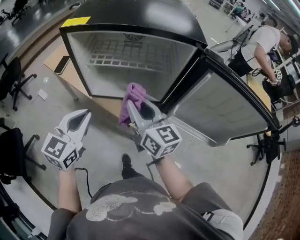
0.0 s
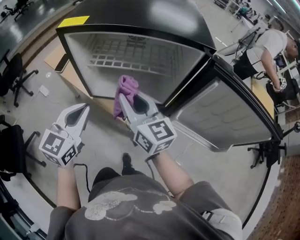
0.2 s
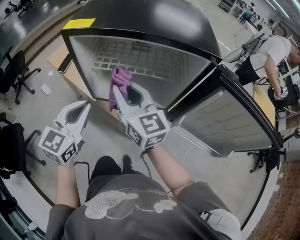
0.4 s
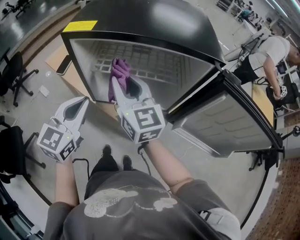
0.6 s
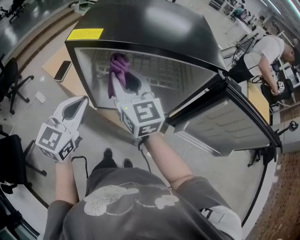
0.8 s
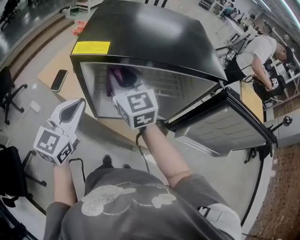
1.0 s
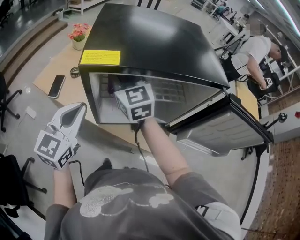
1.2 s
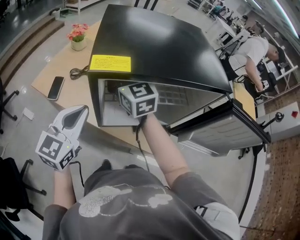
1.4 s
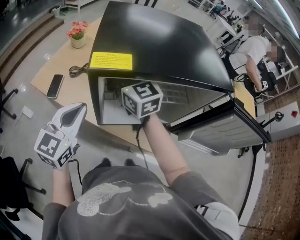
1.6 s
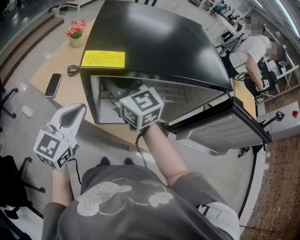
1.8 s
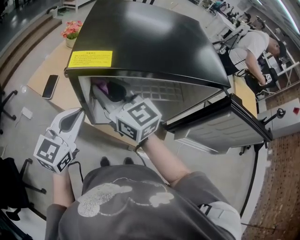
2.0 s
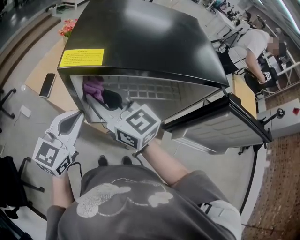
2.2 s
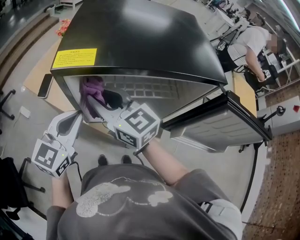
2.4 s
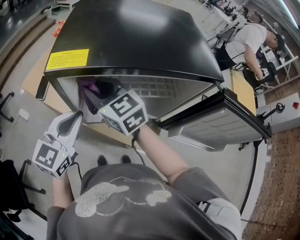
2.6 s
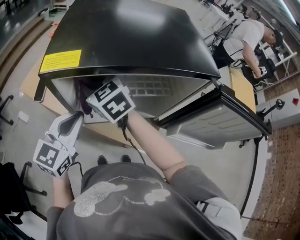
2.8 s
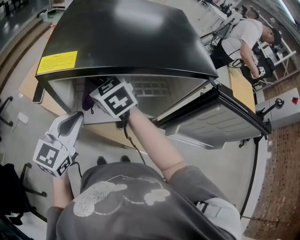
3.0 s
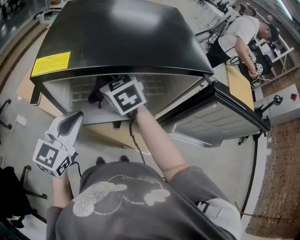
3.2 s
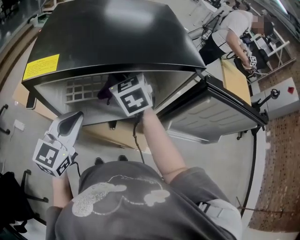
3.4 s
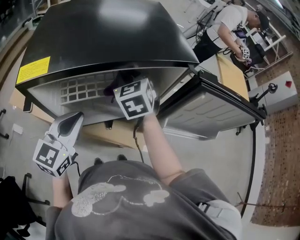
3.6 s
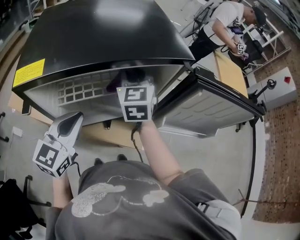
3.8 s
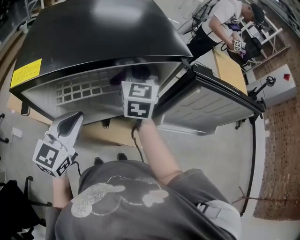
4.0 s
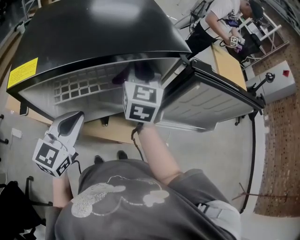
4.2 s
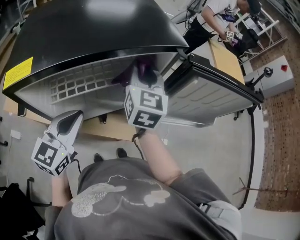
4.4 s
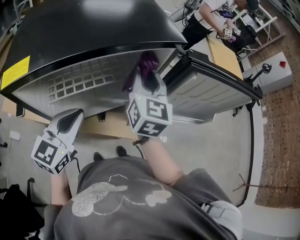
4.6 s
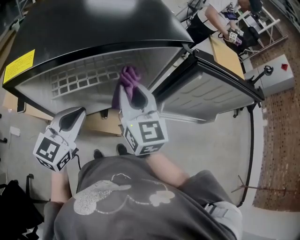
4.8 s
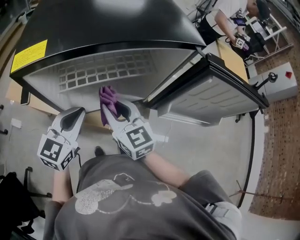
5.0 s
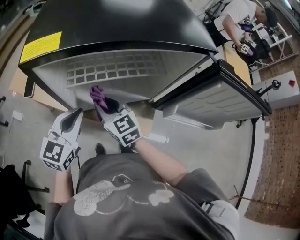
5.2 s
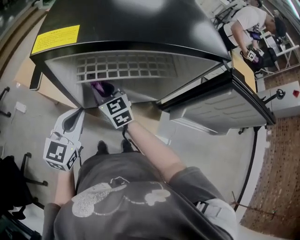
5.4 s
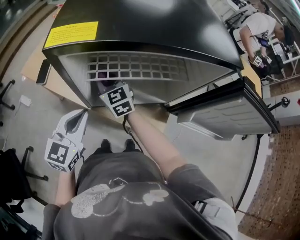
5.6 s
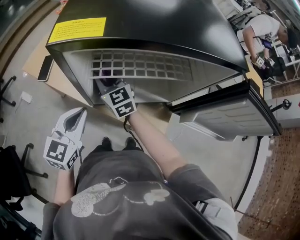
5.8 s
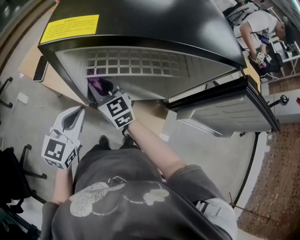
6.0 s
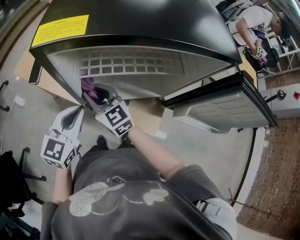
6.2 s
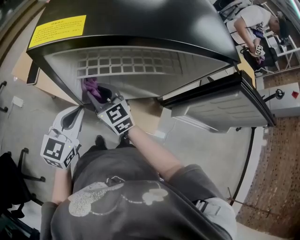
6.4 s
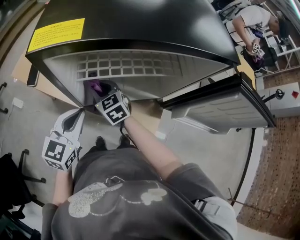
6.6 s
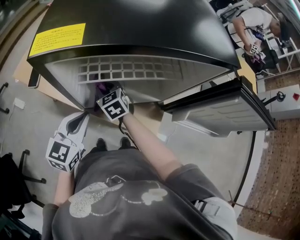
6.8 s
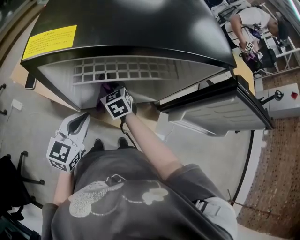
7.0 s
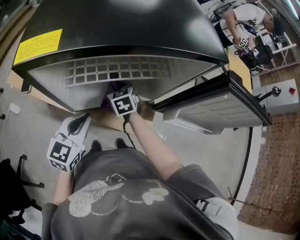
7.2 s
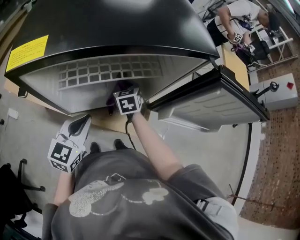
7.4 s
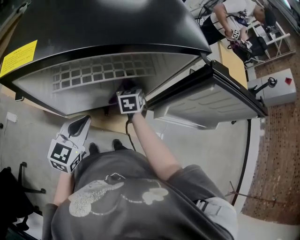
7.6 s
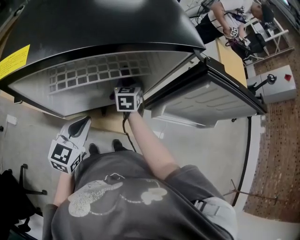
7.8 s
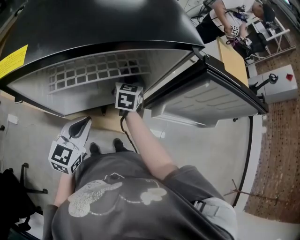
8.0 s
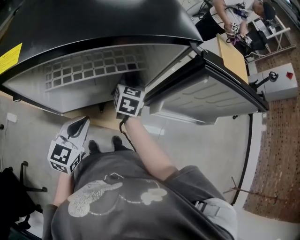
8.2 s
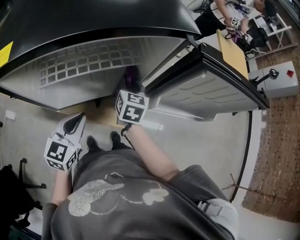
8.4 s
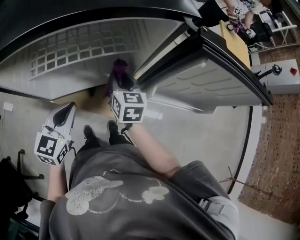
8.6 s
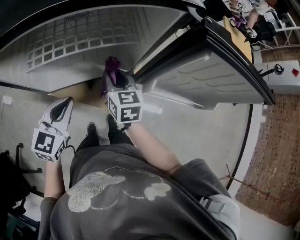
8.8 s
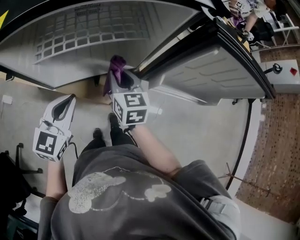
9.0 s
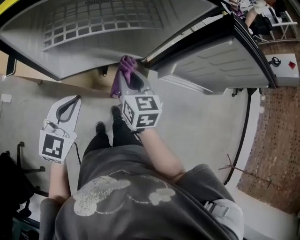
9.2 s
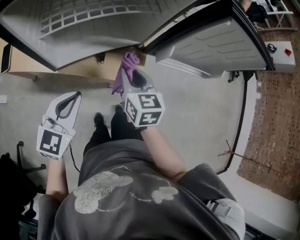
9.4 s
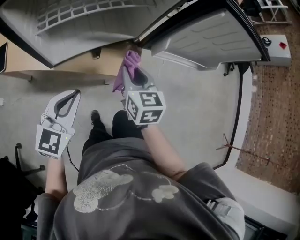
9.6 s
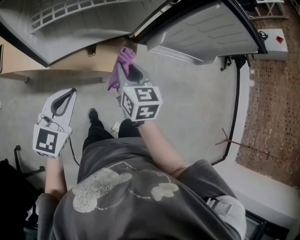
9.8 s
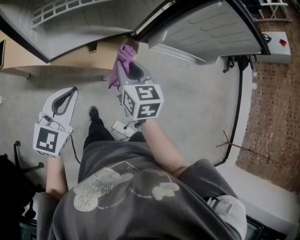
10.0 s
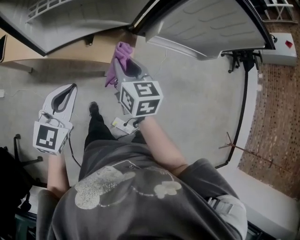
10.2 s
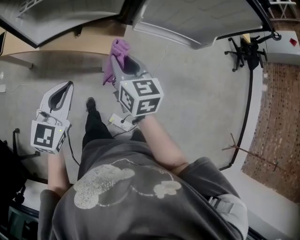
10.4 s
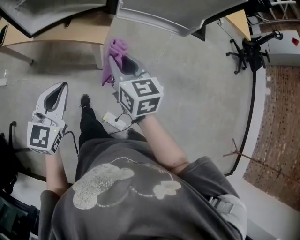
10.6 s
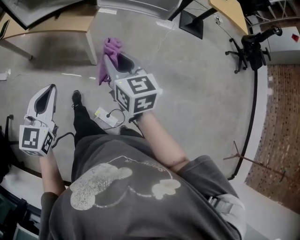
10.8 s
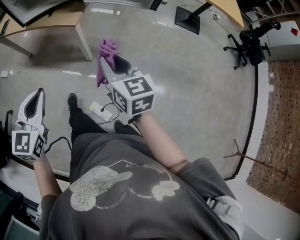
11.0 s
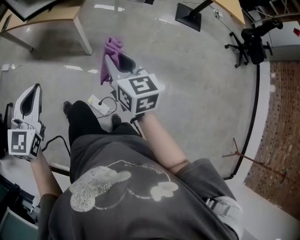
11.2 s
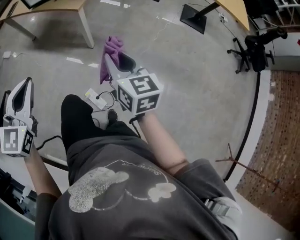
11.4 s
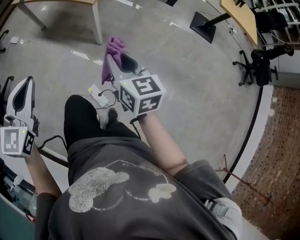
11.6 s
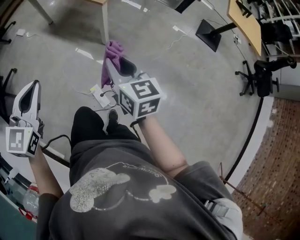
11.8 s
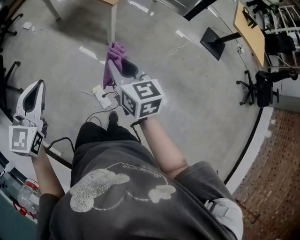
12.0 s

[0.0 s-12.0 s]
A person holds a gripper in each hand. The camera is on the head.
0.0 to 1.6 s: The grippers both shift forward and to the left by approximately 25 cm. The right gripper swivels about 20 degrees.
1.6 to 3.0 s: The left gripper goes approximately 10 cm to the right. Meanwhile the right gripper travels downward by approximately 5 cm, goes backward and returns, about 10 cm each way, and rotates some 20 degrees.
3.0 to 4.4 s: The right gripper shifts by some 30 cm, and rotates about 60 degrees, while the left gripper shifts by about 10 cm.
4.4 to 6.0 s: The left gripper shifts by about 15 cm, while the right gripper moves roughly 35 cm, and turns by approximately 50 degrees.
6.0 to 7.6 s: The right gripper ends up some 30 cm from where it was, and points its fingers some 30 degrees further downward. Meanwhile the left gripper changes place by approximately 10 cm.
7.6 to 9.0 s: The right gripper is displaced backward and upward by some 15 cm, and rotates approximately 30 degrees.
9.0 to 10.4 s: The grippers both shift backward and to the right by roughly 20 cm.
10.4 to 12.0 s: The left gripper moves some 35 cm, and swivels some 30 degrees, while the right gripper ends up approximately 30 cm from where it was, and rotates roughly 30 degrees.

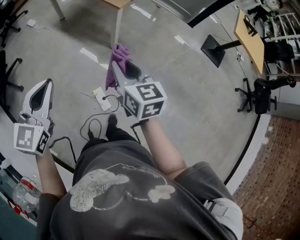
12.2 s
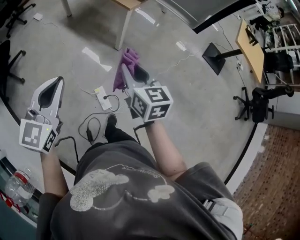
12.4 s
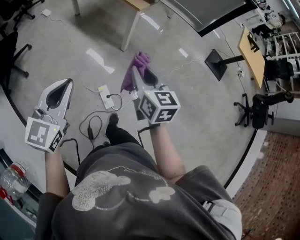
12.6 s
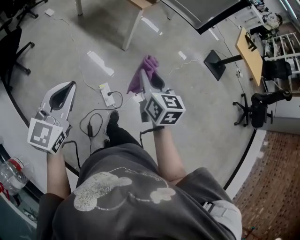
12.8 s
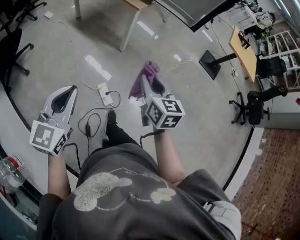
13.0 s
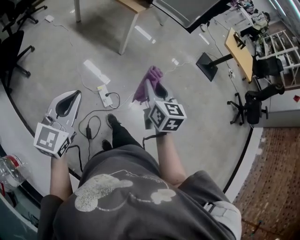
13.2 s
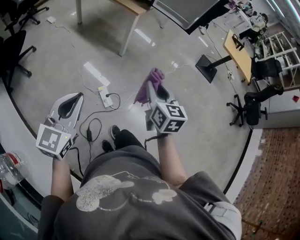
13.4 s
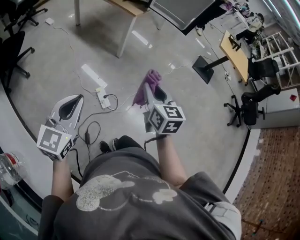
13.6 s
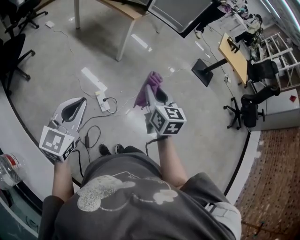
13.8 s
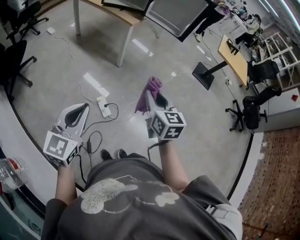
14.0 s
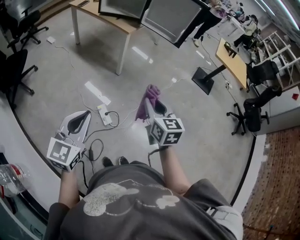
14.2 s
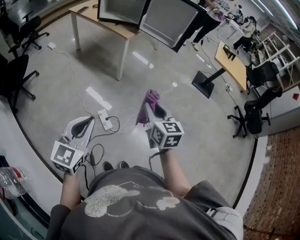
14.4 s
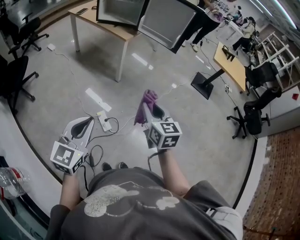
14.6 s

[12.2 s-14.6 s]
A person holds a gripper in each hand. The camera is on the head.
12.2 to 13.4 s: Both grippers travel together backward, approximately 25 cm.
13.4 to 14.6 s: The left gripper heads to the right, covering roughly 10 cm.

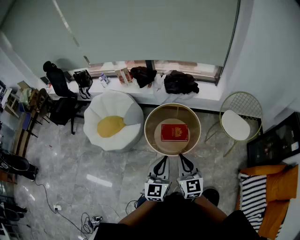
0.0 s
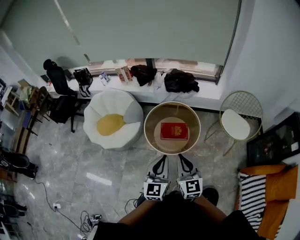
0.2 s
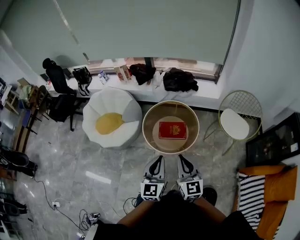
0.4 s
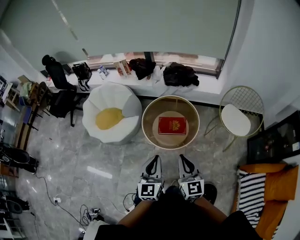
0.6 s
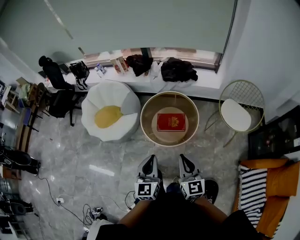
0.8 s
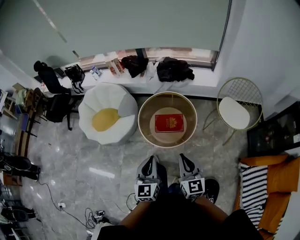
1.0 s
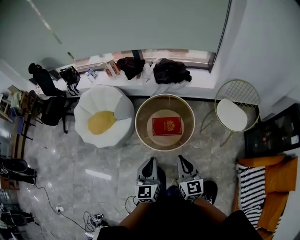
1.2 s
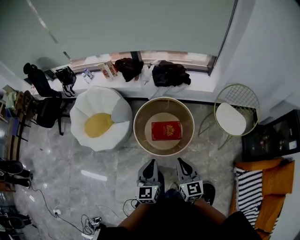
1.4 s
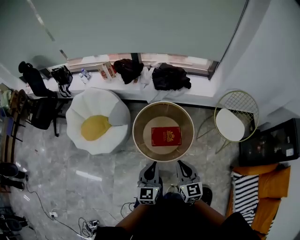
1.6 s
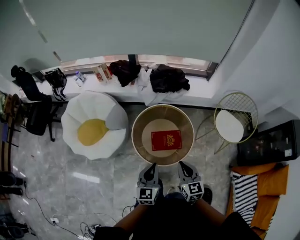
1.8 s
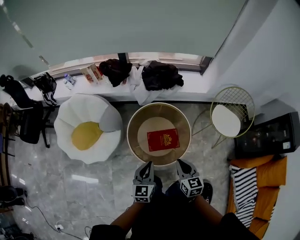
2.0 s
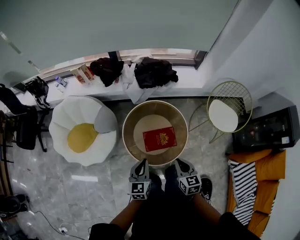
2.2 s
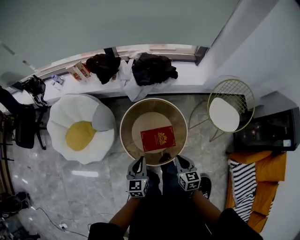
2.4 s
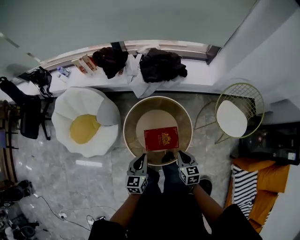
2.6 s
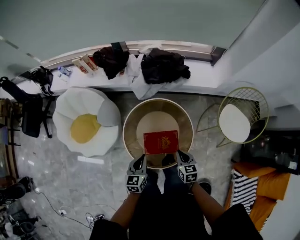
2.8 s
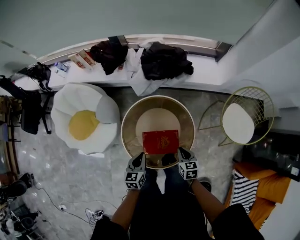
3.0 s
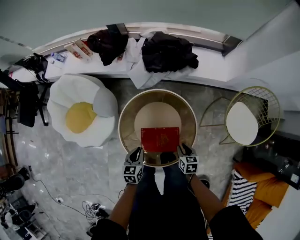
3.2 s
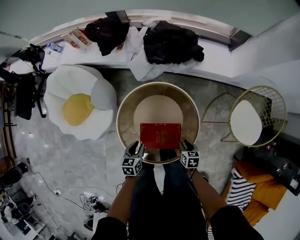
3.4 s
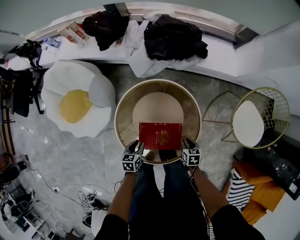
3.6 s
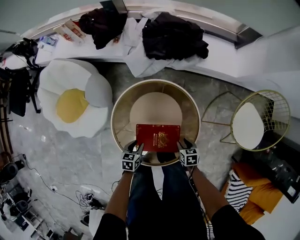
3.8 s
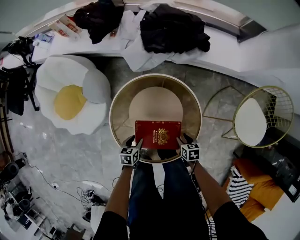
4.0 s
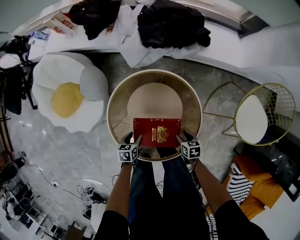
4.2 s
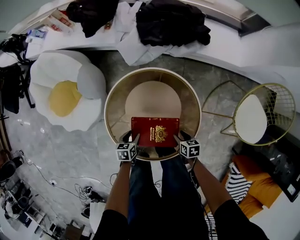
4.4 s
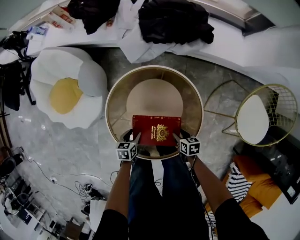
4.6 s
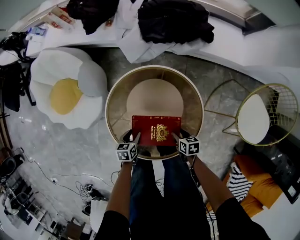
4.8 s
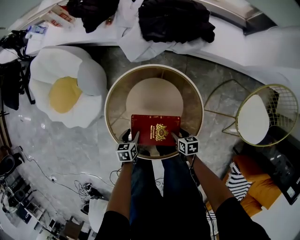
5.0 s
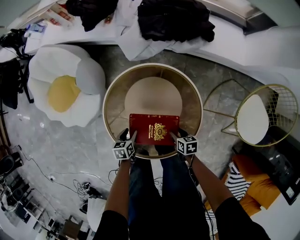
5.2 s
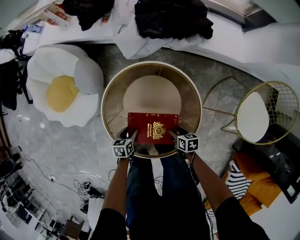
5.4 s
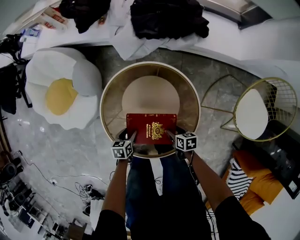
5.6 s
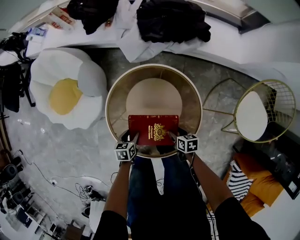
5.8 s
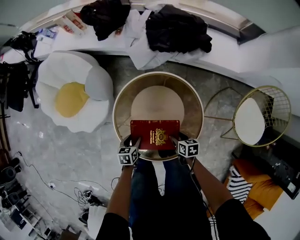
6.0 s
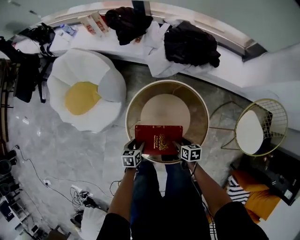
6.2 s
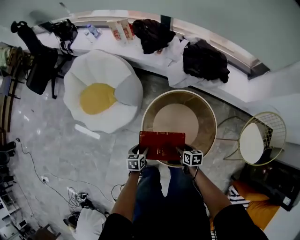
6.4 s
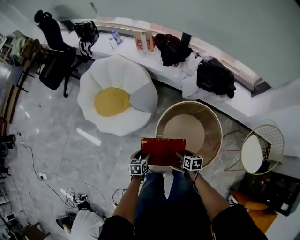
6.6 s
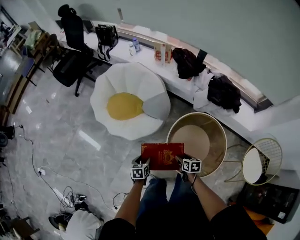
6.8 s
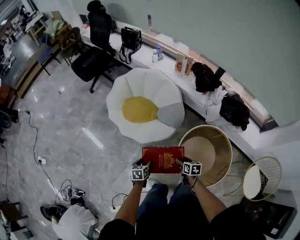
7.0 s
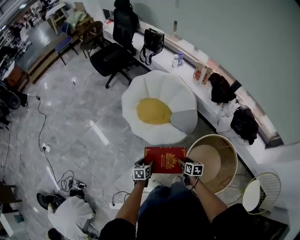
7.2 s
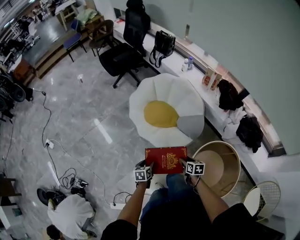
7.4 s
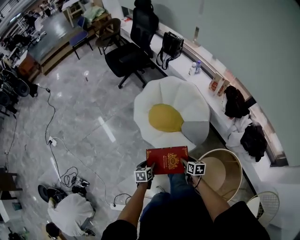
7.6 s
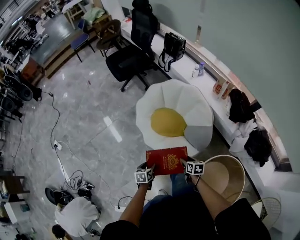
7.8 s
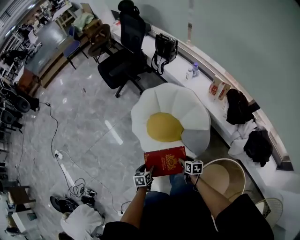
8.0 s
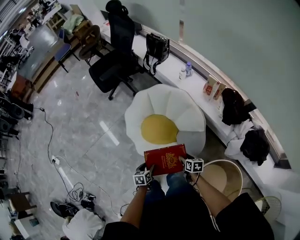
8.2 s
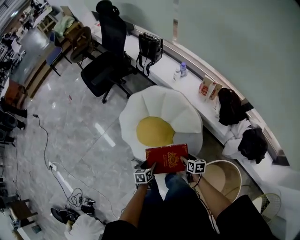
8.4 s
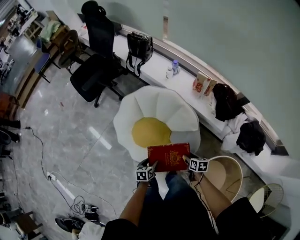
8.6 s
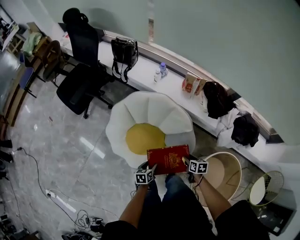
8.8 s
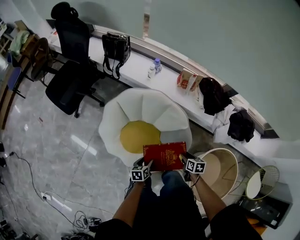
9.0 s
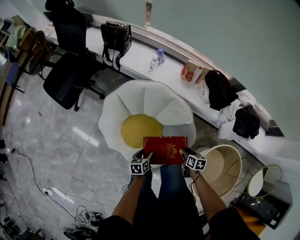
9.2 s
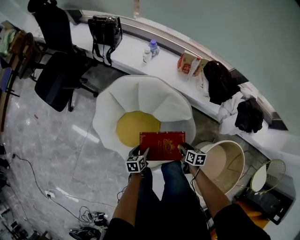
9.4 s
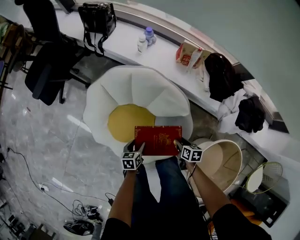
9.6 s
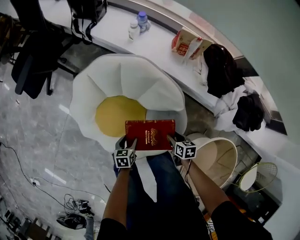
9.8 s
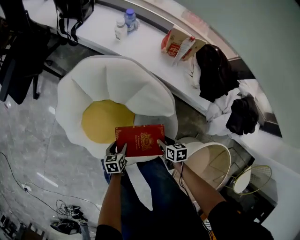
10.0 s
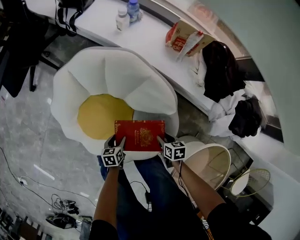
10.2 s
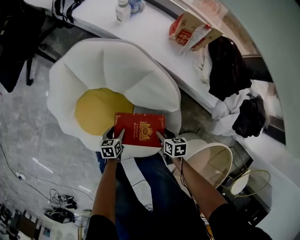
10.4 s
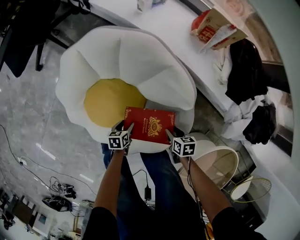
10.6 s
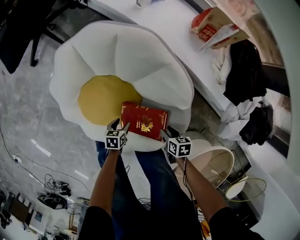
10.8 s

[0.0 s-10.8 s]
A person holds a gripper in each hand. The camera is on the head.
0.0 to 1.6 s: The grippers both shift forward and downward by approximately 15 cm.
1.6 to 3.0 s: The right gripper goes approximately 35 cm downward and forward, and swivels roughly 30 degrees, while the left gripper travels forward and downward by some 35 cm, and rotates about 30 degrees.
3.0 to 4.6 s: The two grippers go some 25 cm downward. The right gripper changes its angle by about 30 degrees, and opens. Meanwhile the left gripper rotates about 30 degrees, and opens its fingers.
4.6 to 6.2 s: The grippers both shift upward and to the left by approximately 10 cm.
6.2 to 7.8 s: Both grippers are carried roughly 50 cm. The right gripper rotates some 40 degrees; the left gripper swivels roughly 40 degrees.
7.8 to 9.2 s: The right gripper moves approximately 25 cm, and changes its angle by some 30 degrees; the left gripper shifts by approximately 35 cm, and swivels some 30 degrees.
9.2 to 10.8 s: Both grippers travel together downward, some 30 cm. The right gripper rotates about 30 degrees.
